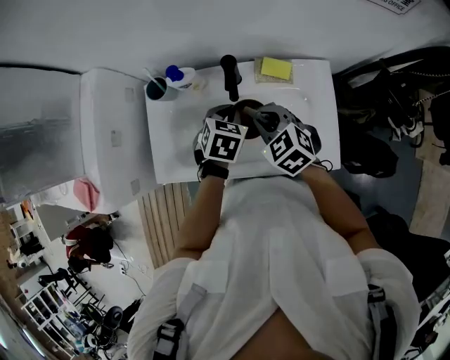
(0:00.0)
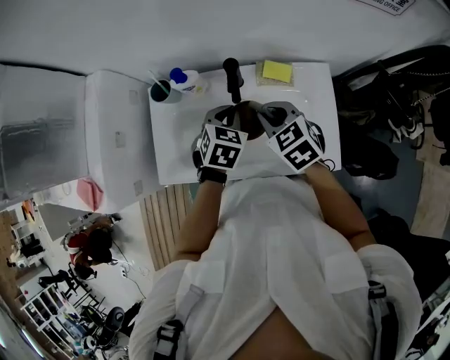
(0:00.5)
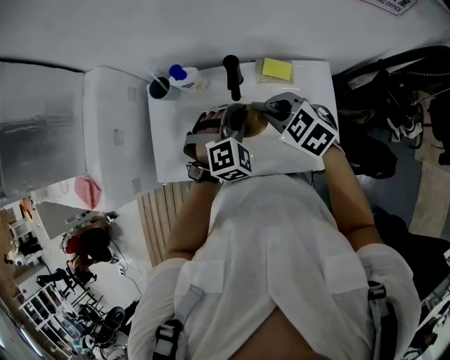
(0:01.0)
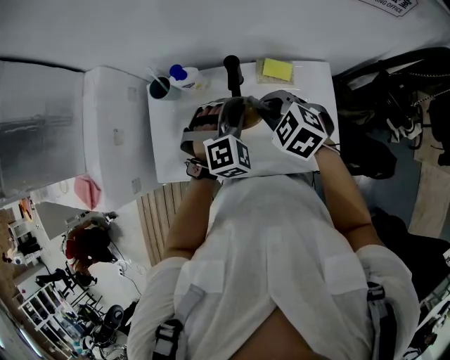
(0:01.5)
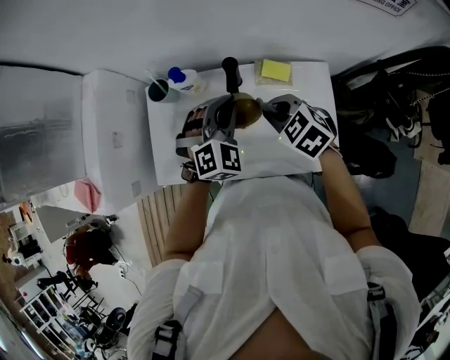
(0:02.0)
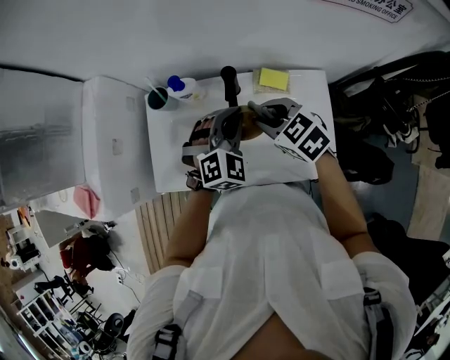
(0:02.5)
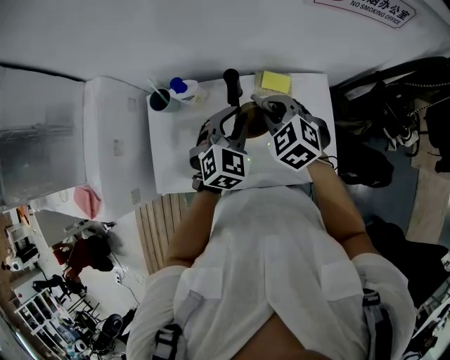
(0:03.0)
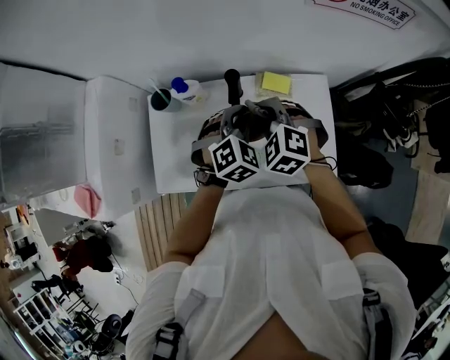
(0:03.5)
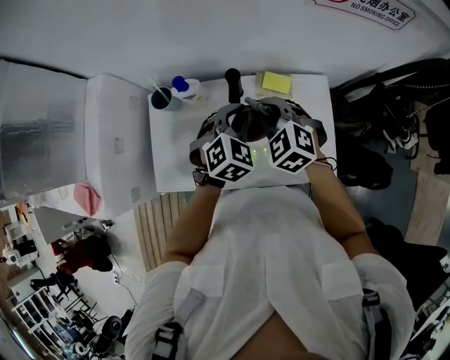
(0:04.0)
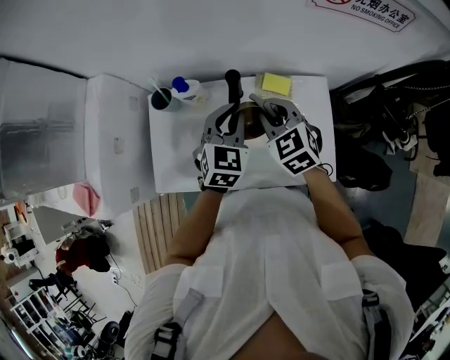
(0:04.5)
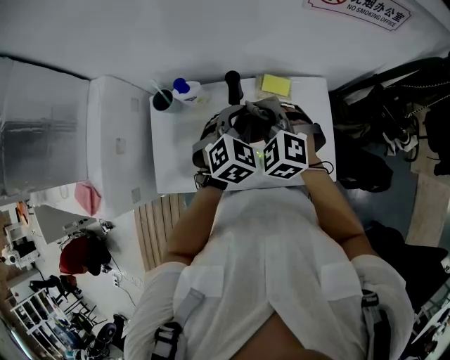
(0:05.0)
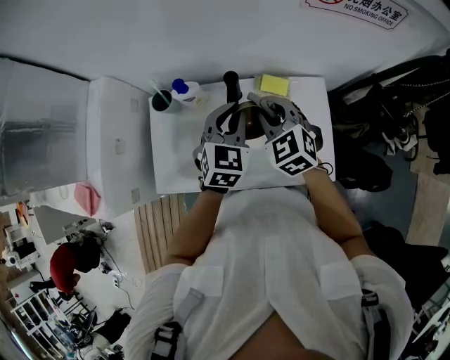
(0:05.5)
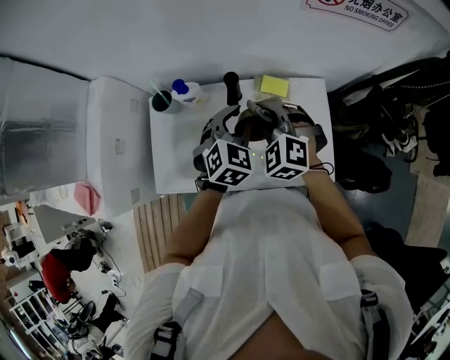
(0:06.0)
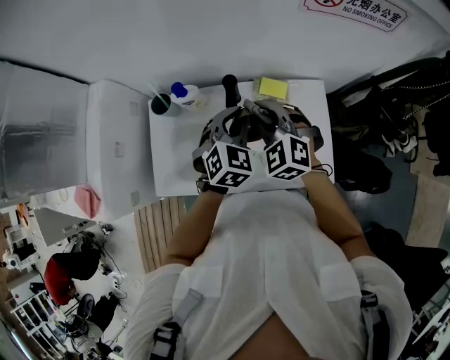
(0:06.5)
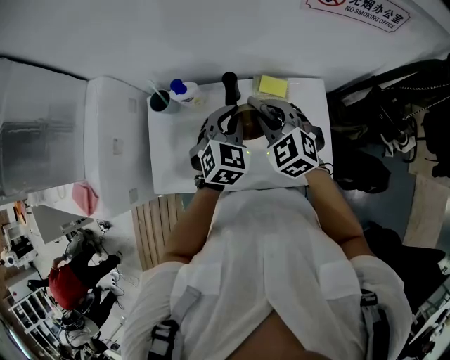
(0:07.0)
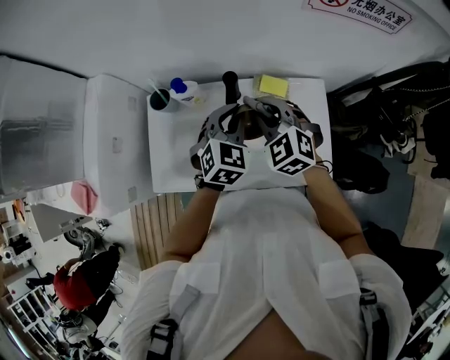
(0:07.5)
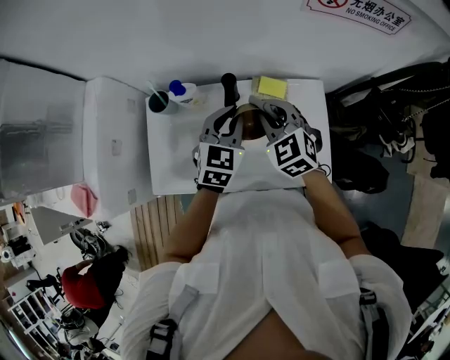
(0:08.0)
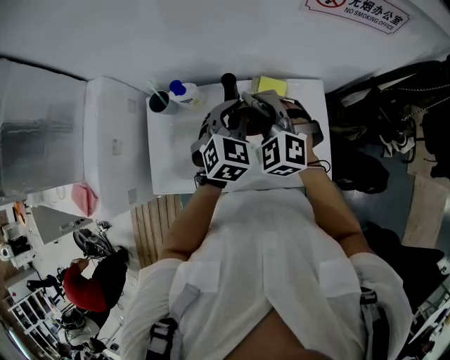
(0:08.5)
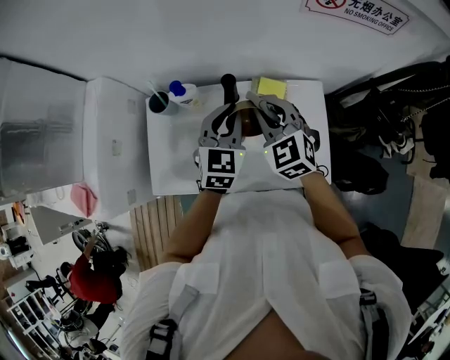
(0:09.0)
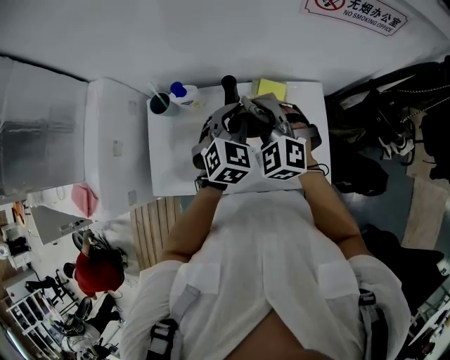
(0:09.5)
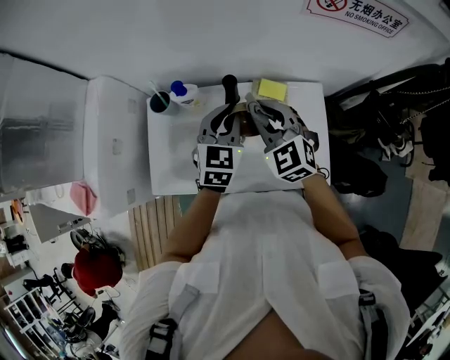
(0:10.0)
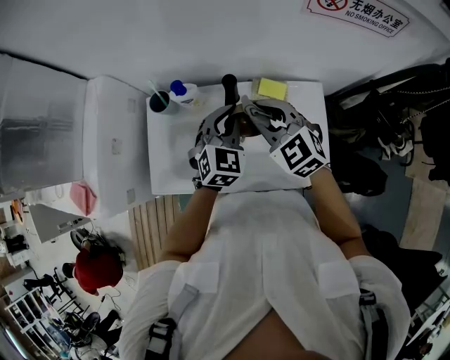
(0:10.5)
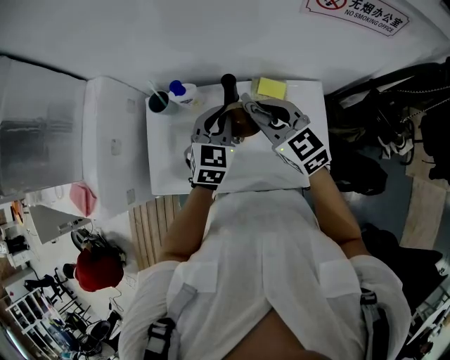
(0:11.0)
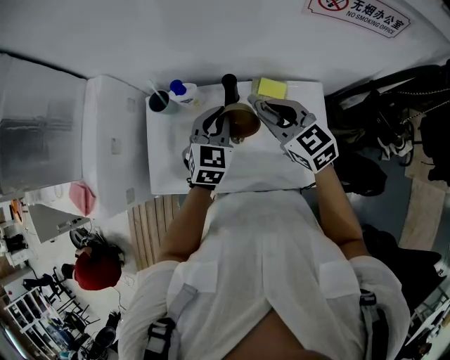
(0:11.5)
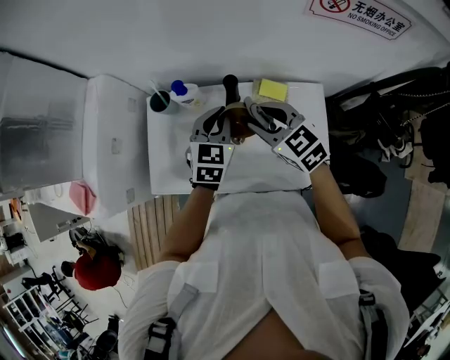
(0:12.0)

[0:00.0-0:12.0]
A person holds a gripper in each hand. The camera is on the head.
0:00.0 to 0:02.0: The left gripper goes some 10 cm upward, and rolls clockwise, seen from behind, by roughly 40 degrees.
0:02.0 to 0:04.0: The right gripper changes its angle by roughly 20 degrees.
0:04.0 to 0:06.0: The left gripper opens up.
0:06.0 to 0:08.0: The right gripper swivels some 20 degrees.
0:10.0 to 0:12.0: The right gripper swivels approximately 30 degrees, and opens its fingers.

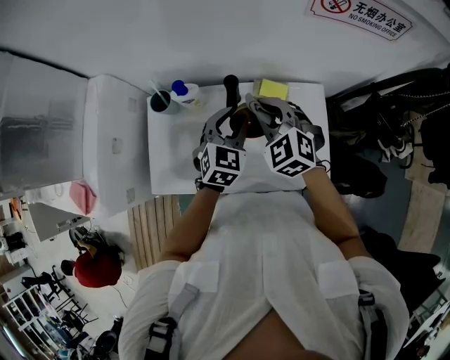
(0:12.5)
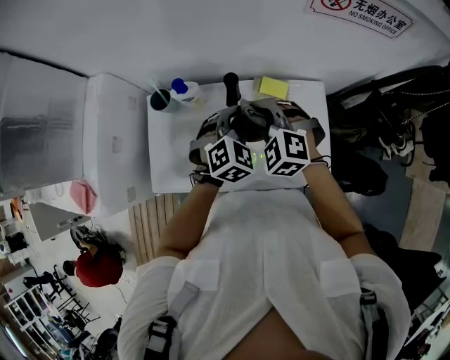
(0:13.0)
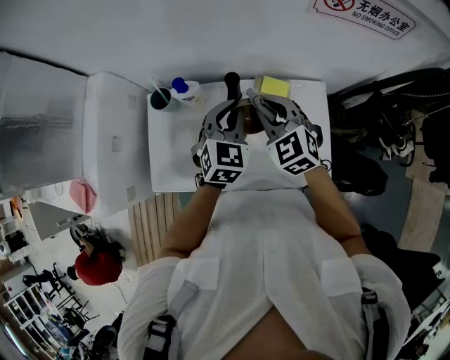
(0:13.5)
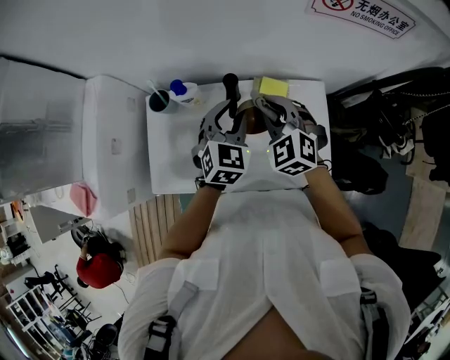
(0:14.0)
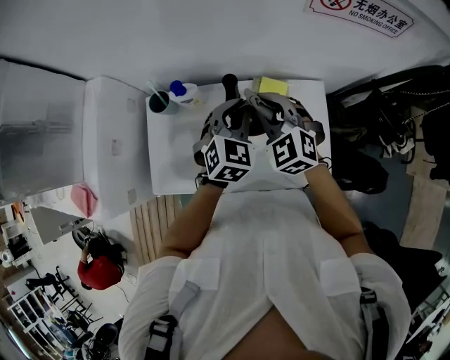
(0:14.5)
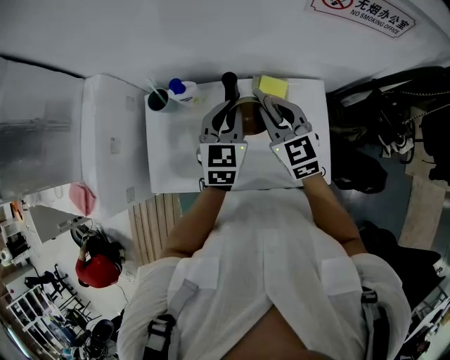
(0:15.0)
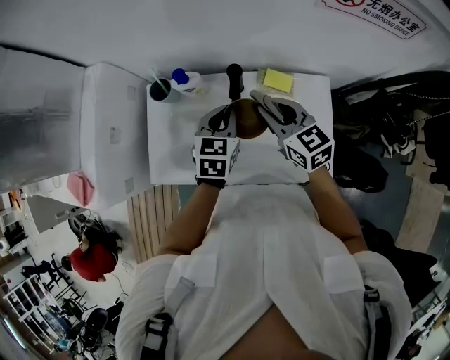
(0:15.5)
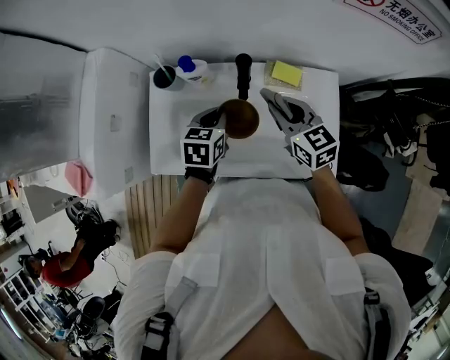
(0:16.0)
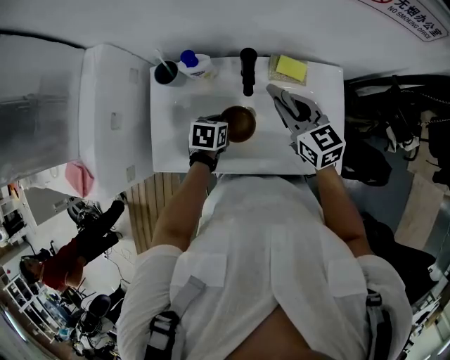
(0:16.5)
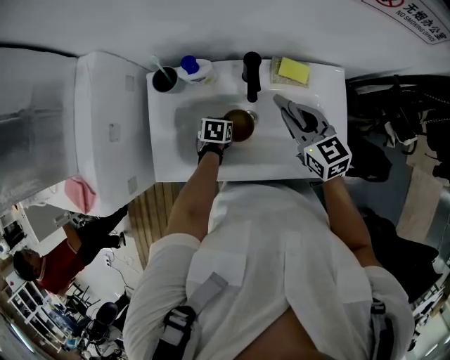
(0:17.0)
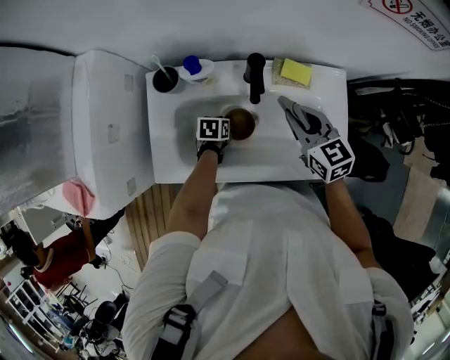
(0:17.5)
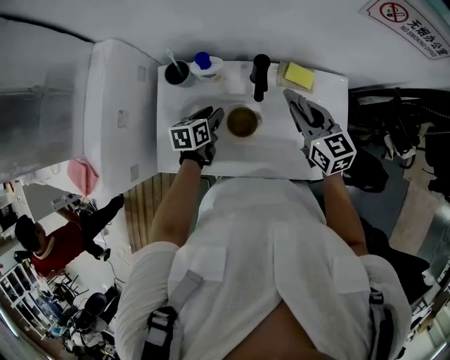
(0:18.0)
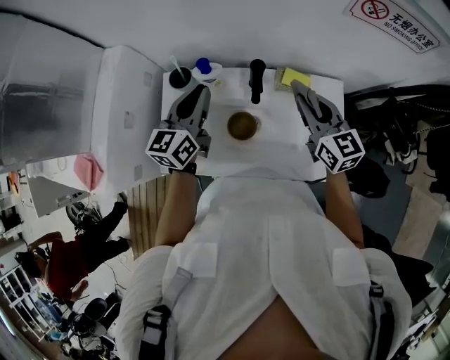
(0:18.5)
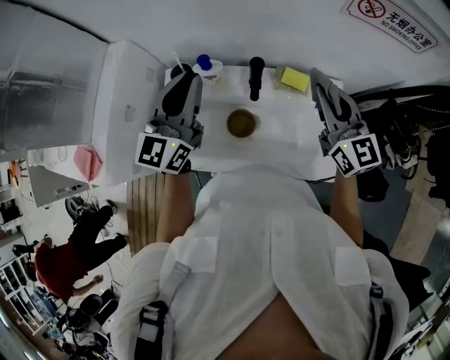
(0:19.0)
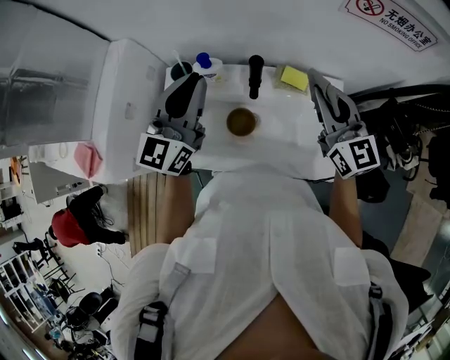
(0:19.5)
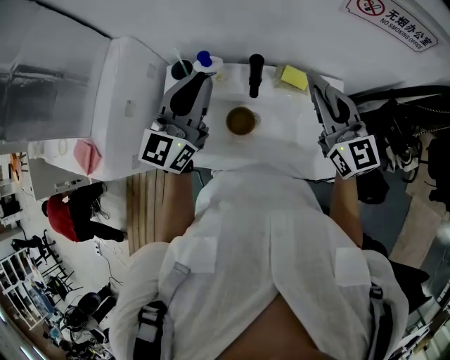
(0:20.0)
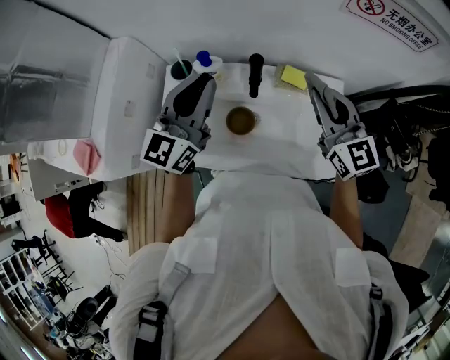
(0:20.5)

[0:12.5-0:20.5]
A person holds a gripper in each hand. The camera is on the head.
0:12.5 to 0:14.5: The left gripper closes.
0:14.5 to 0:16.5: The right gripper shifts approximately 5 cm downward, and rotates around the line of its fingers by roughly 40 degrees, clockwise from behind. Meanwhile the left gripper travels downward and to the left by roughly 25 cm, and turns by about 50 degrees.
0:16.5 to 0:18.5: The right gripper shifts roughly 5 cm upward, while the left gripper travels upward by about 25 cm, points its fingers approximately 50 degrees further upward, and opens and closes again.
0:18.5 to 0:20.5: Both grippers travel together upward, some 10 cm. The left gripper rotates some 20 degrees.

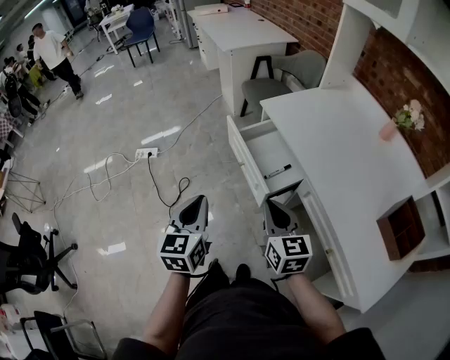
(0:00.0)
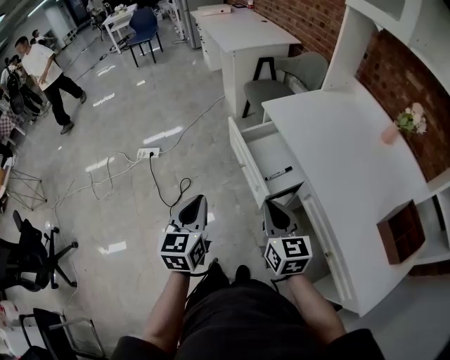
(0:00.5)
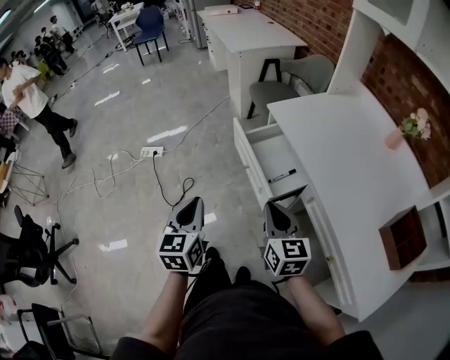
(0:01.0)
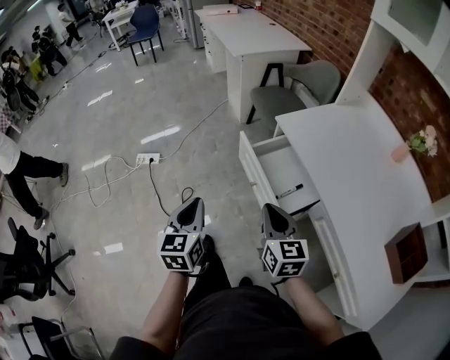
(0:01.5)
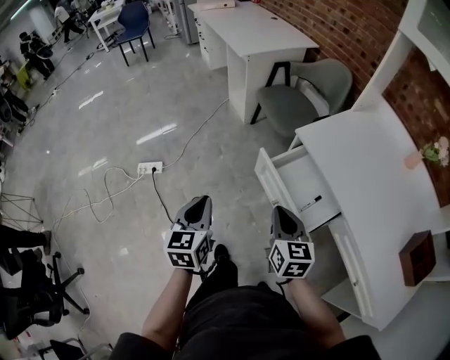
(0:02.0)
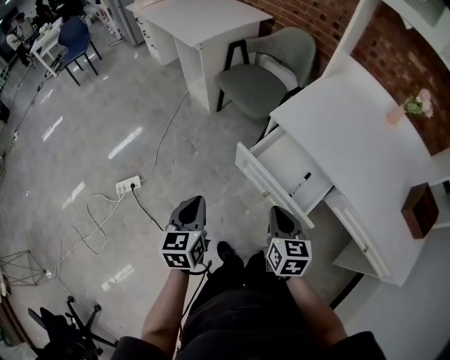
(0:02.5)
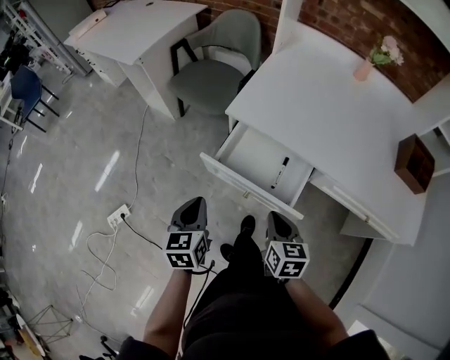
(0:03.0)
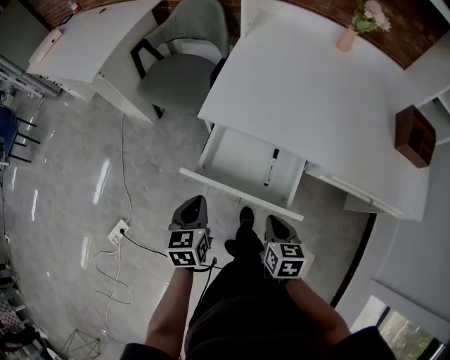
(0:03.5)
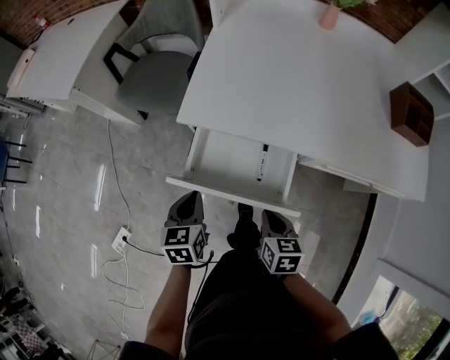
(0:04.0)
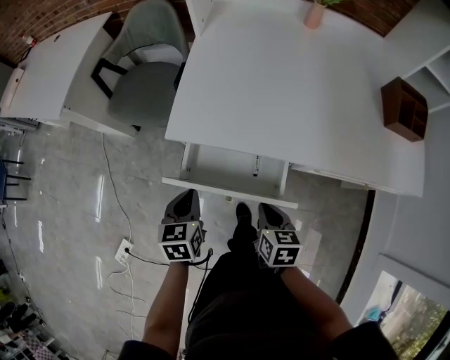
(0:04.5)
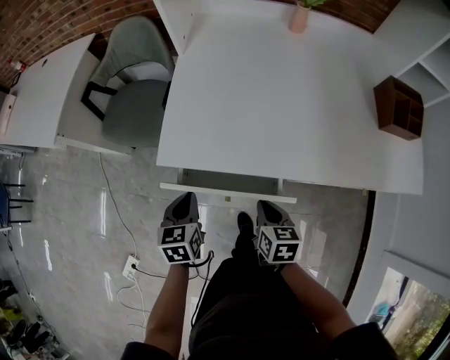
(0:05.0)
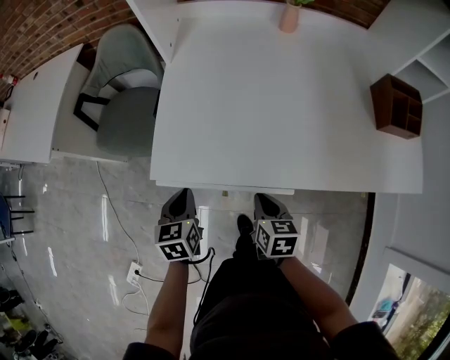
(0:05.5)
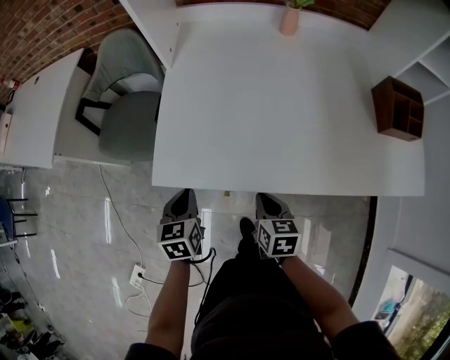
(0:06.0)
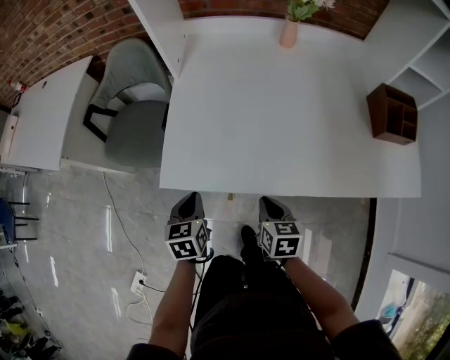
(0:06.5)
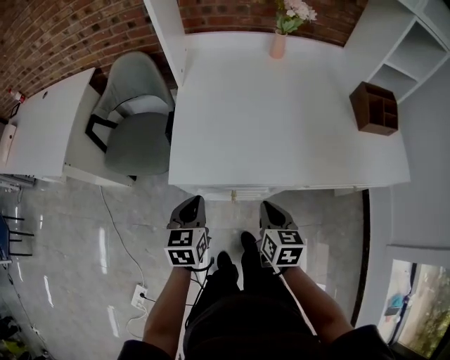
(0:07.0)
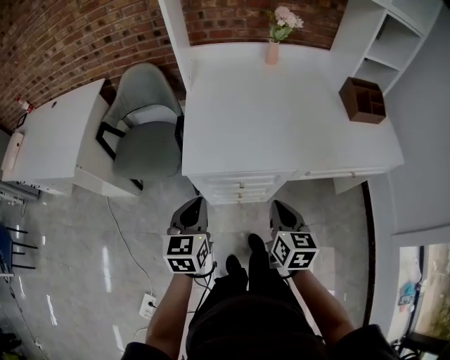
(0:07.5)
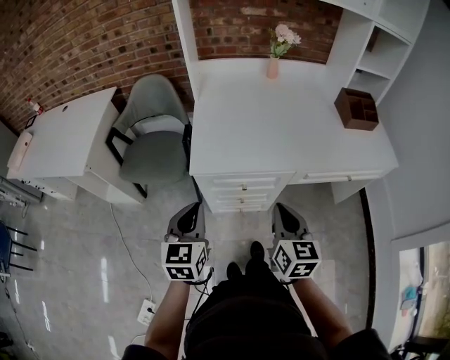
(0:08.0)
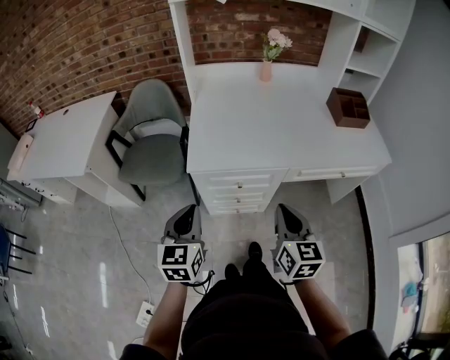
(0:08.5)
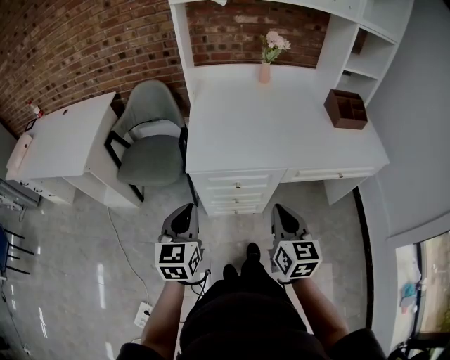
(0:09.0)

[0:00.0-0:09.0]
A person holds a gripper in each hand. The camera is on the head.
0:00.0 to 0:02.0: Both grippers move forward and to the left, approximately 25 cm.
0:02.0 to 0:04.5: The right gripper is displaced downward by about 15 cm, and swivels roughly 60 degrees, while the left gripper moves some 35 cm, and swivels about 50 degrees.
0:04.5 to 0:07.0: The right gripper shifts roughly 10 cm upward and forward; the left gripper moves forward and upward, roughly 10 cm.
0:07.0 to 0:09.0: The grippers both shift backward and upward by approximately 20 cm. The right gripper changes its angle by roughly 20 degrees.
